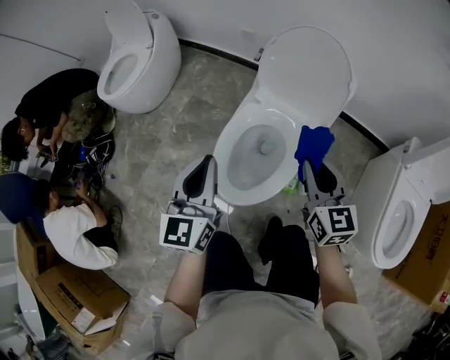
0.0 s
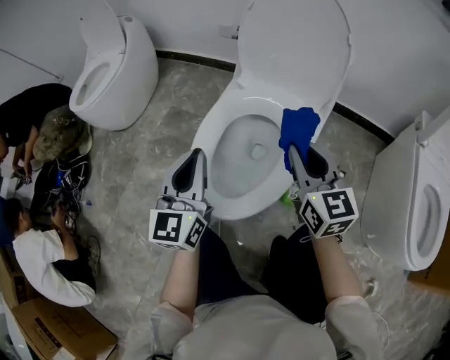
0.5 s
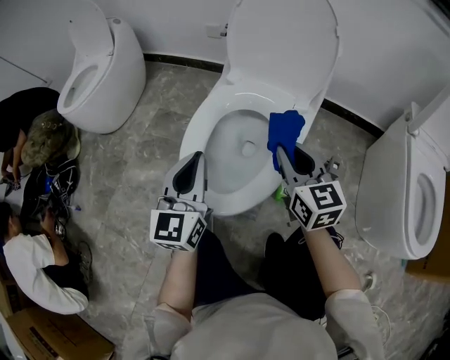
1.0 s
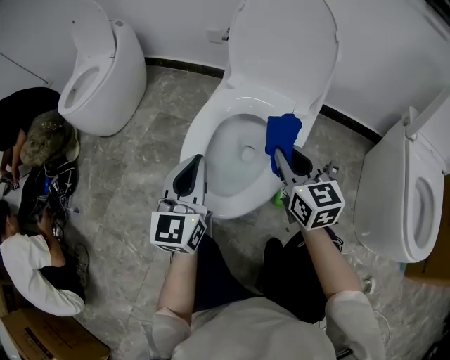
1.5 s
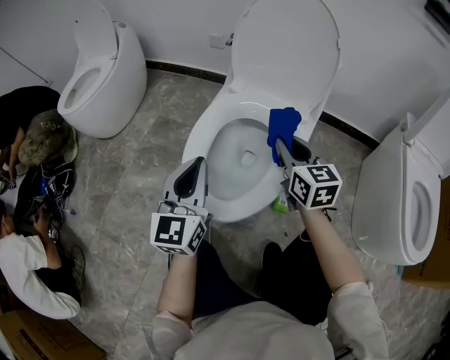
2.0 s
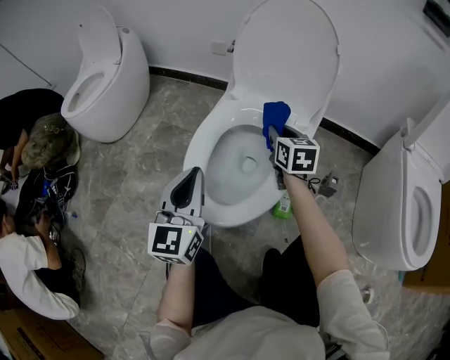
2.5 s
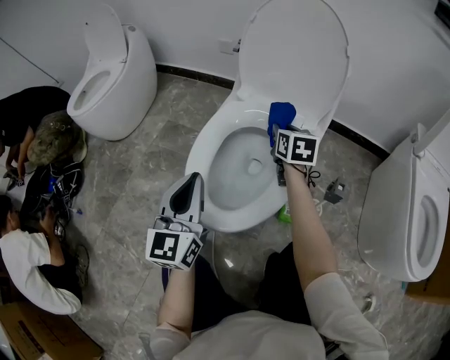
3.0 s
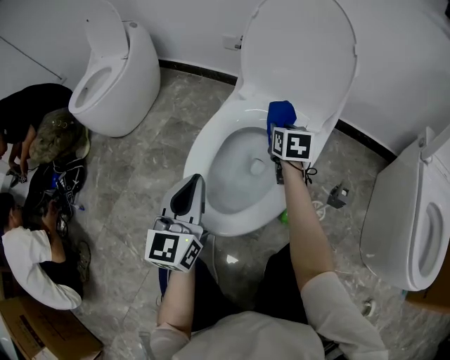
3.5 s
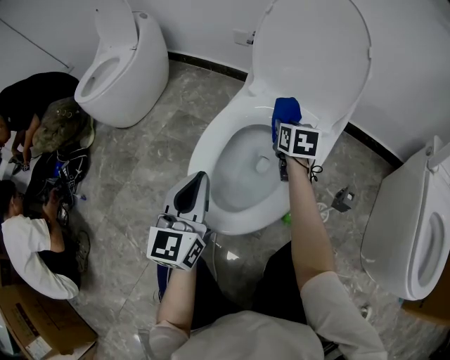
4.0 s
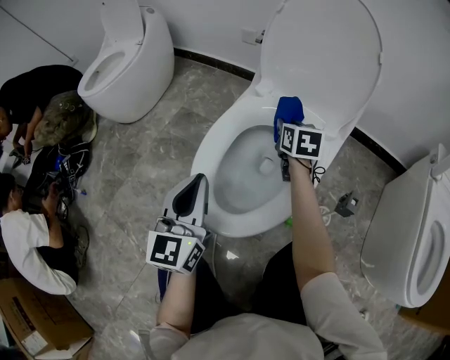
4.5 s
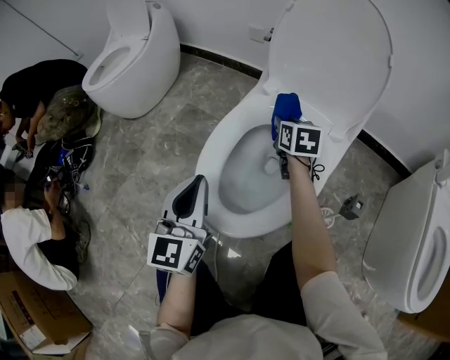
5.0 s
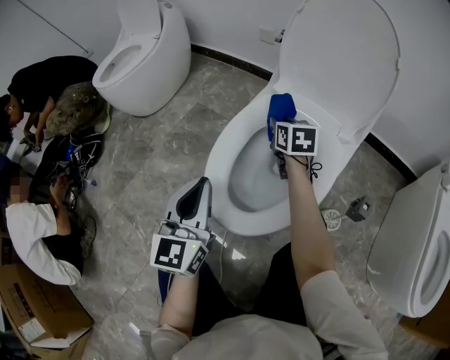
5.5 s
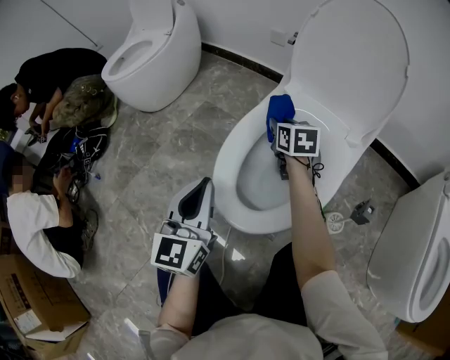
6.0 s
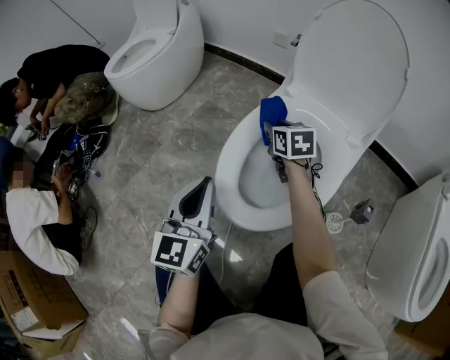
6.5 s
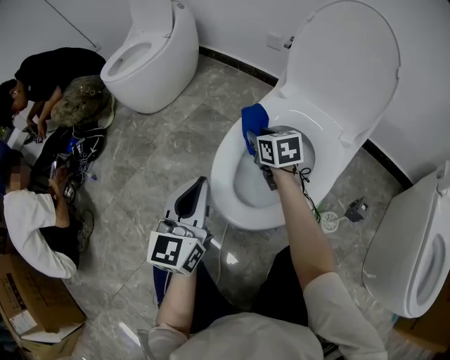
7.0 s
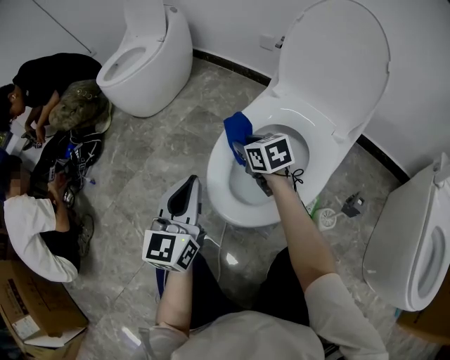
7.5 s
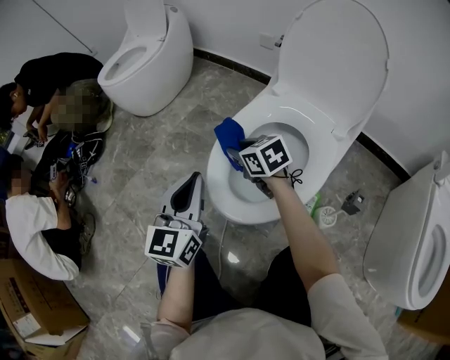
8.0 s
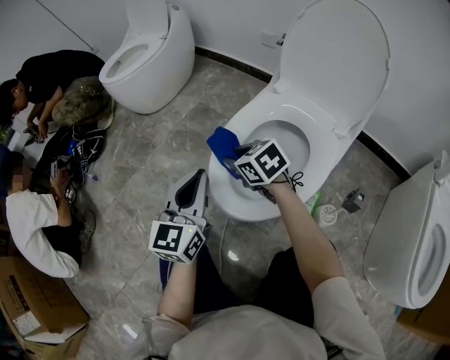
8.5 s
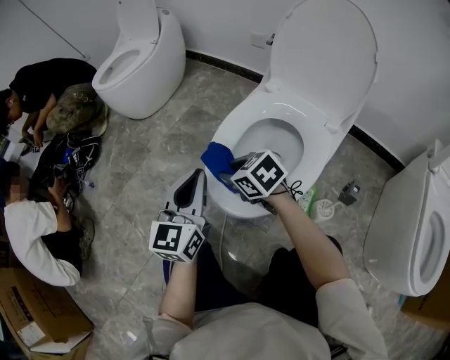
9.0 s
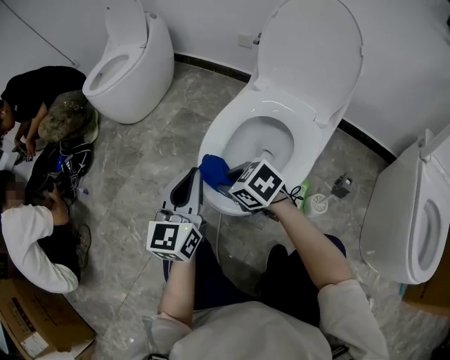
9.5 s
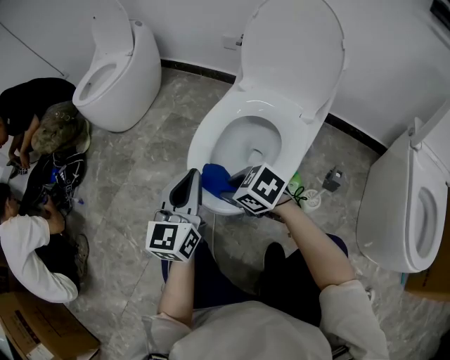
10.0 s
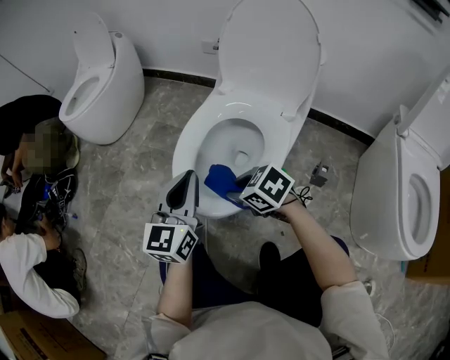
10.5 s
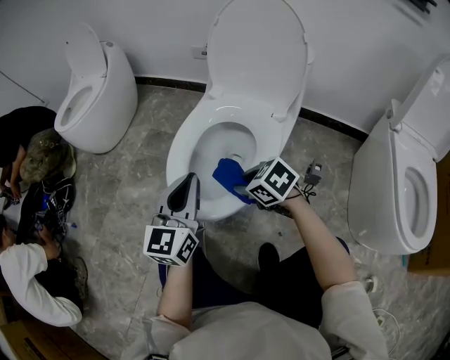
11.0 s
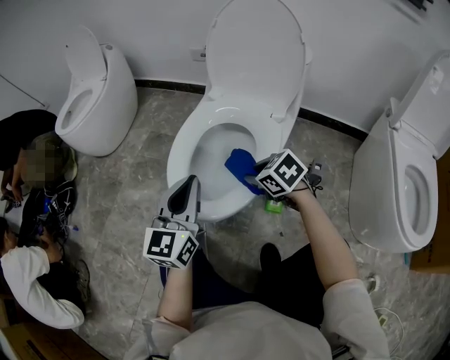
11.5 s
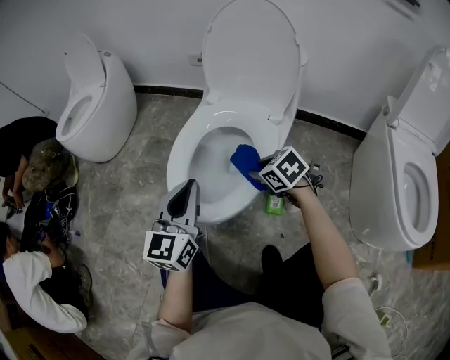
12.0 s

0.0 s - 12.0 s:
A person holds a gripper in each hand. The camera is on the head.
0.0 s - 2.0 s: Both grippers travel together downward, about 20 cm.
2.0 s - 4.0 s: The right gripper shifts some 20 cm forward and downward.
4.0 s - 6.0 s: The left gripper shifts approximately 5 cm to the left; the right gripper shifts some 10 cm to the left.
6.0 s - 8.0 s: The right gripper travels to the left and backward by roughly 15 cm, and turns by approximately 30 degrees.
8.0 s - 10.0 s: The right gripper shifts some 15 cm backward.
10.0 s - 12.0 s: The right gripper shifts some 20 cm to the right, and swivels approximately 20 degrees. The left gripper shifts some 5 cm to the right.

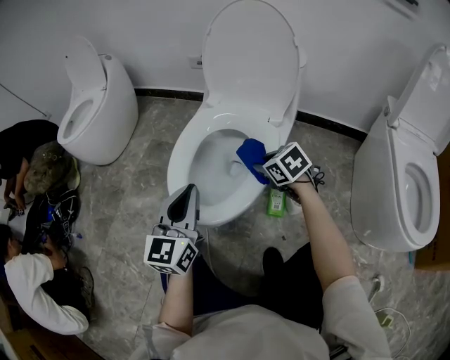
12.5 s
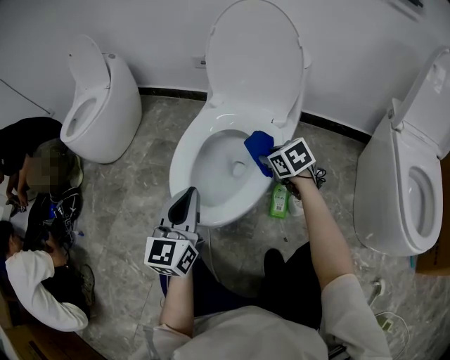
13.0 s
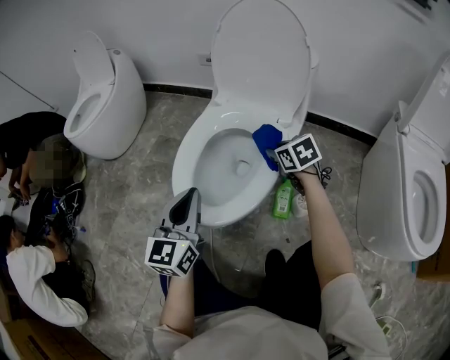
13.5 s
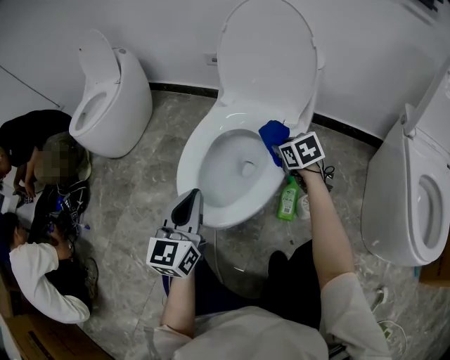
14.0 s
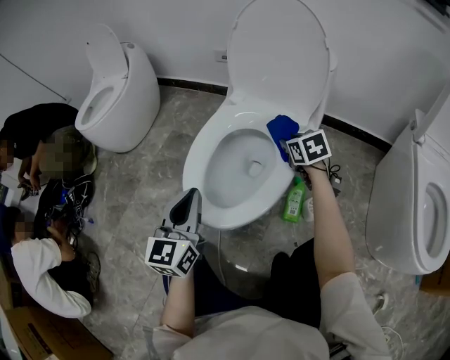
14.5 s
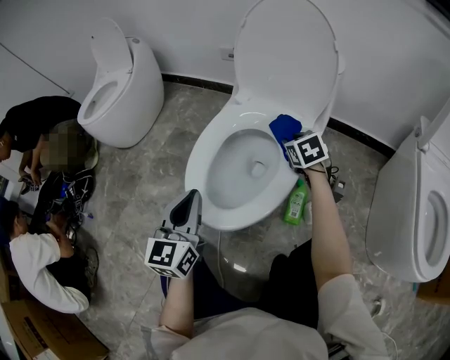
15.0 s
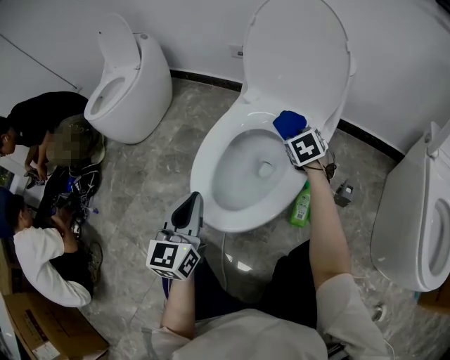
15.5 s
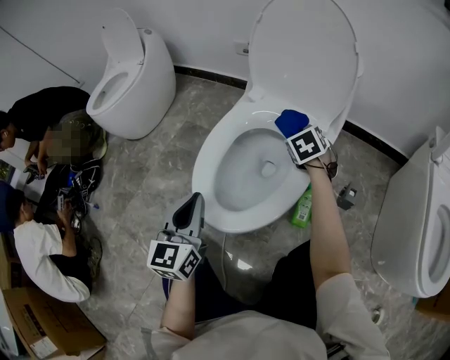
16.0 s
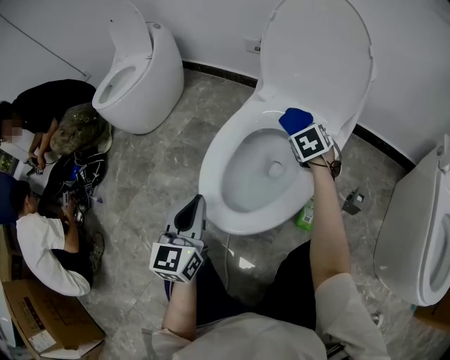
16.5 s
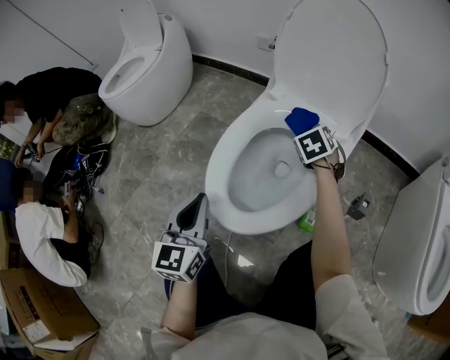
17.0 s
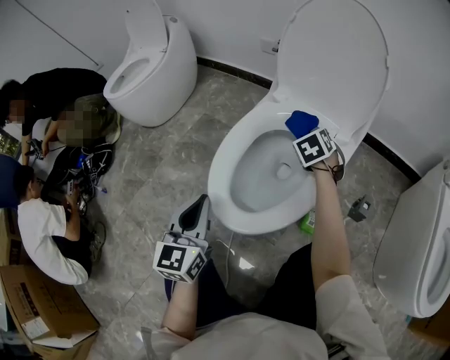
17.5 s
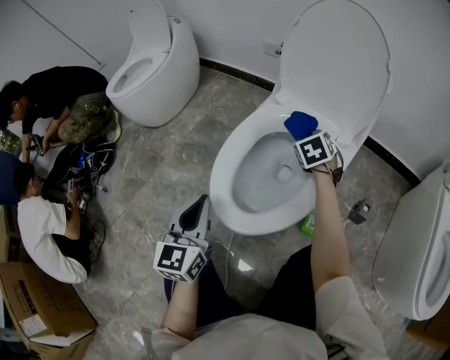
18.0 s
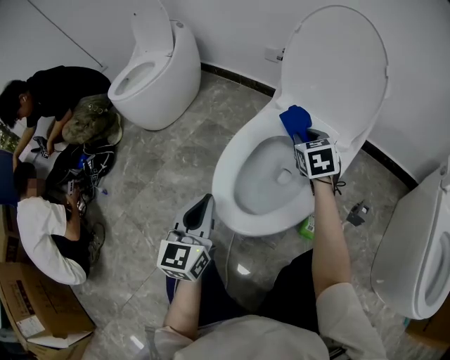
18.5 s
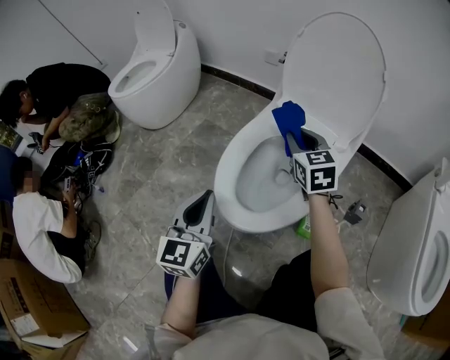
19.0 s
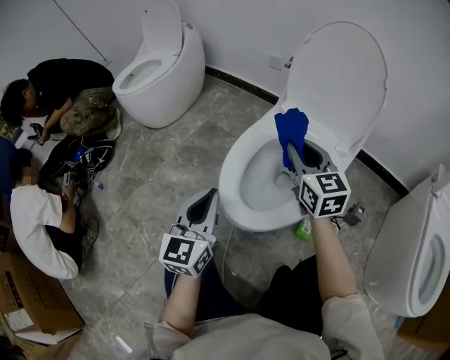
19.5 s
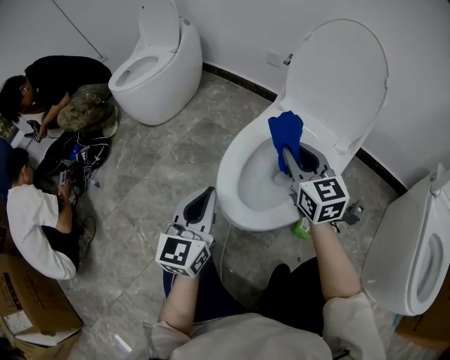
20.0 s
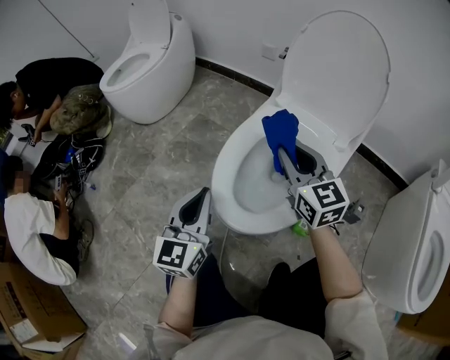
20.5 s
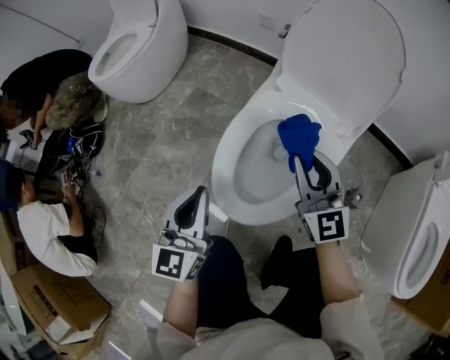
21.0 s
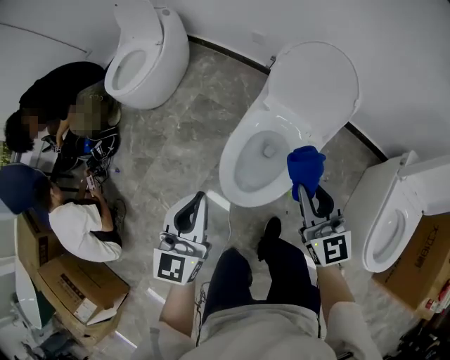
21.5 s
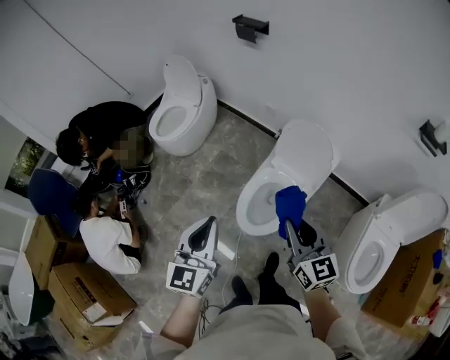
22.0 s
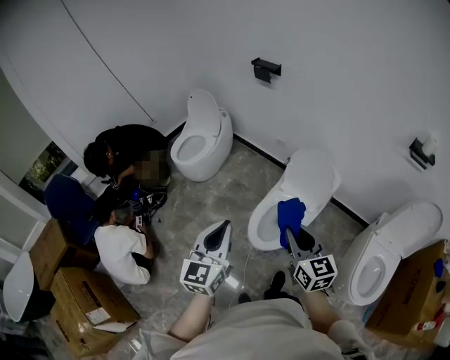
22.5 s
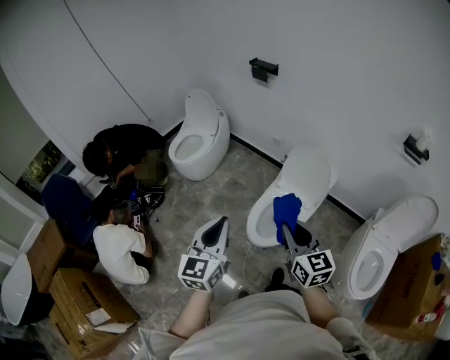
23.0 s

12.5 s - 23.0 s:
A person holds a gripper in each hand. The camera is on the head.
12.5 s - 14.5 s: The right gripper is displaced forward and to the right by approximately 10 cm.
14.5 s - 16.5 s: The right gripper heads forward, covering roughly 5 cm.
16.5 s - 19.0 s: The right gripper moves upward, to the left and backward, about 15 cm, and rotates some 30 degrees.
19.0 s - 21.0 s: The left gripper heads upward, covering approximately 5 cm. The right gripper goes roughly 10 cm backward and upward, and swivels approximately 20 degrees.
21.0 s - 23.0 s: The right gripper shifts roughly 60 cm upward and backward, and swivels some 20 degrees; the left gripper moves upward, approximately 60 cm.

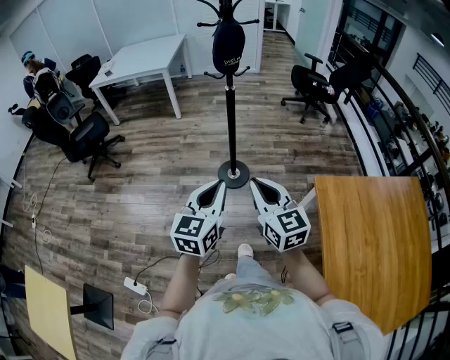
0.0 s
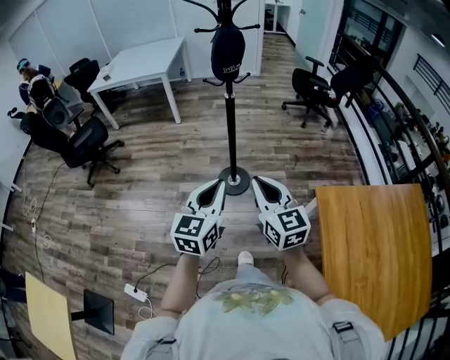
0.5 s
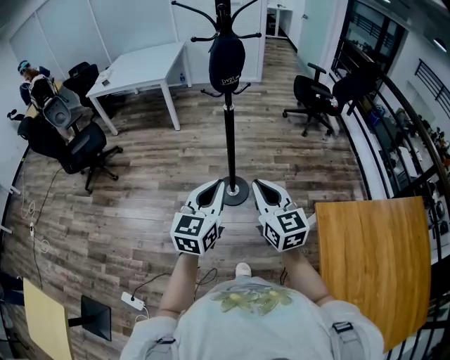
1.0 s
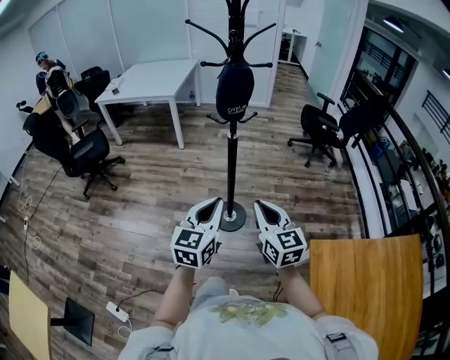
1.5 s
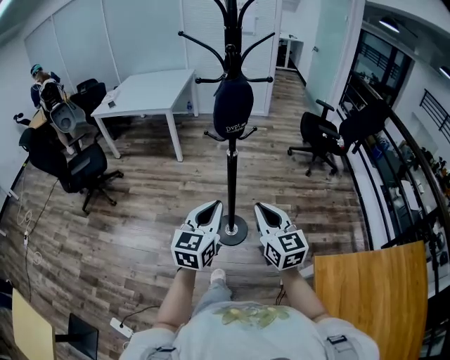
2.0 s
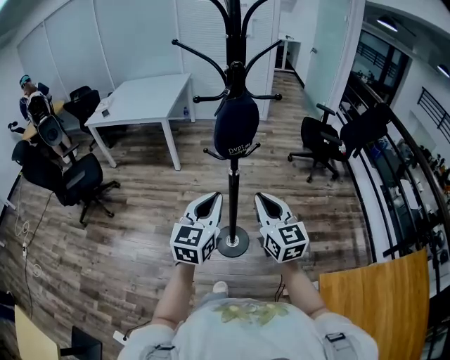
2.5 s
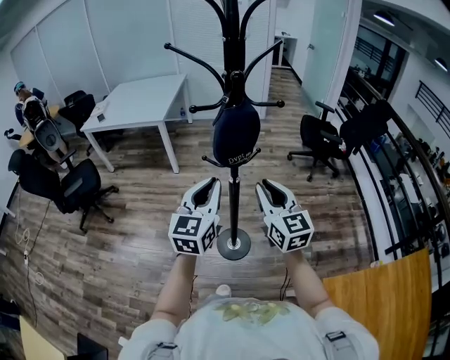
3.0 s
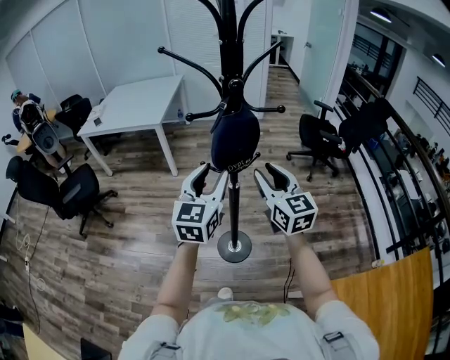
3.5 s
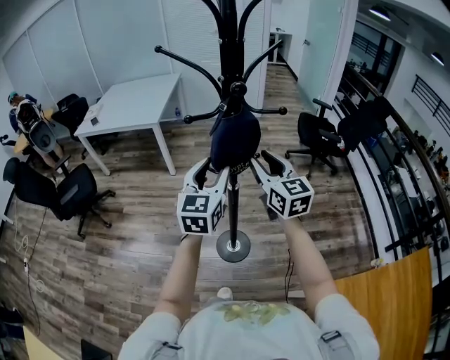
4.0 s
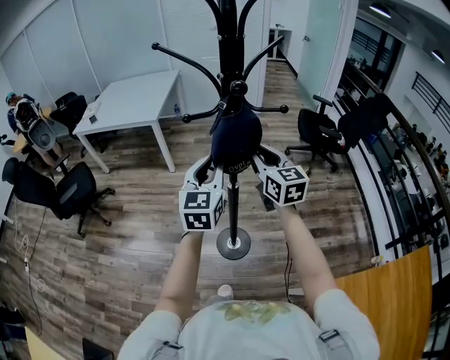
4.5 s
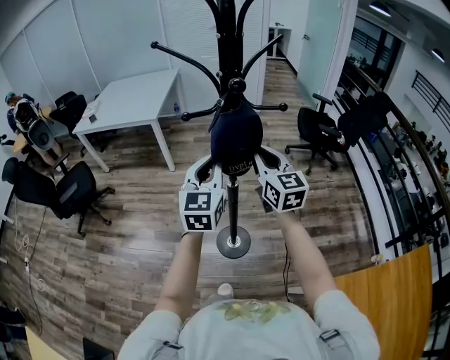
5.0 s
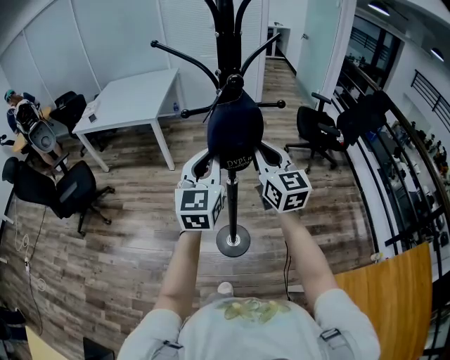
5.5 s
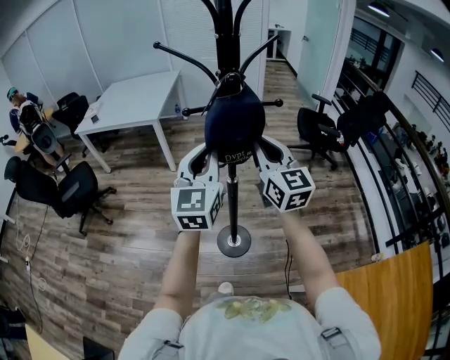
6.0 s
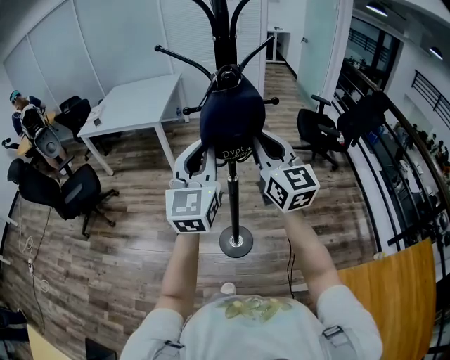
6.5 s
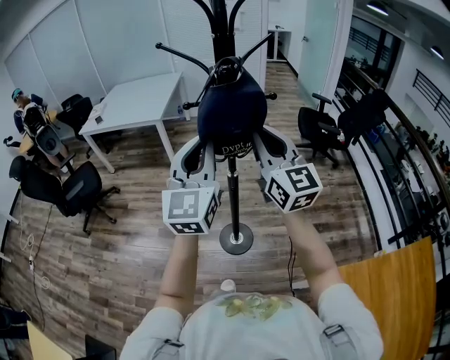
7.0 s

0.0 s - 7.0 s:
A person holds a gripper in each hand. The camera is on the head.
0.0 s - 2.0 s: Both grippers move forward, approximately 25 cm.
2.0 s - 3.5 s: The right gripper is displaced forward by approximately 25 cm, and opens up; the left gripper moves forward and upward, roughly 25 cm, and opens up.
3.5 s - 5.0 s: The right gripper shifts some 5 cm forward, and closes its fingers. The left gripper closes.
5.0 s - 7.0 s: Both grippers travel together upward and backward, roughly 15 cm.
